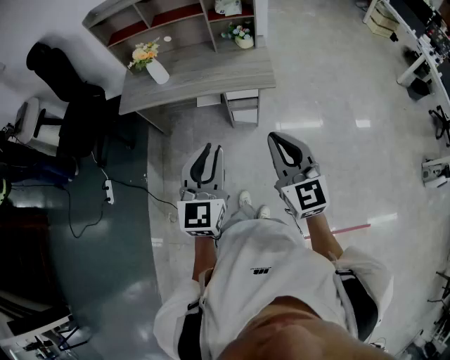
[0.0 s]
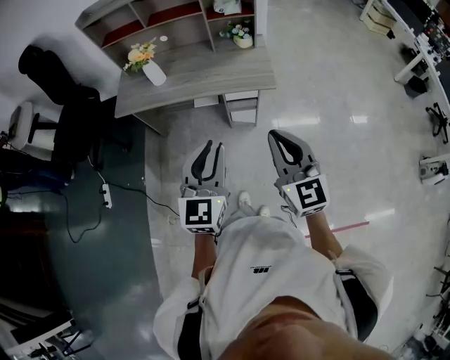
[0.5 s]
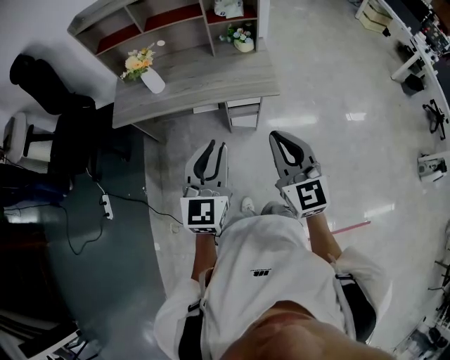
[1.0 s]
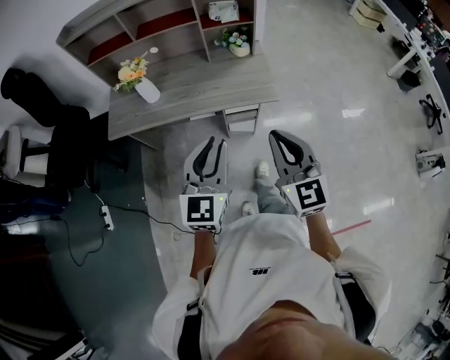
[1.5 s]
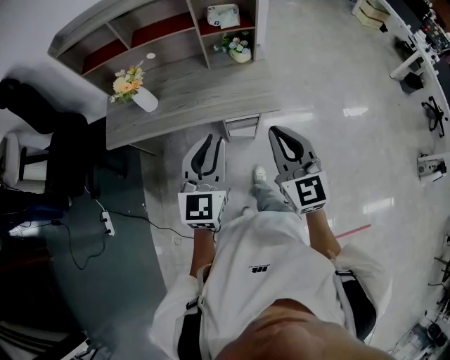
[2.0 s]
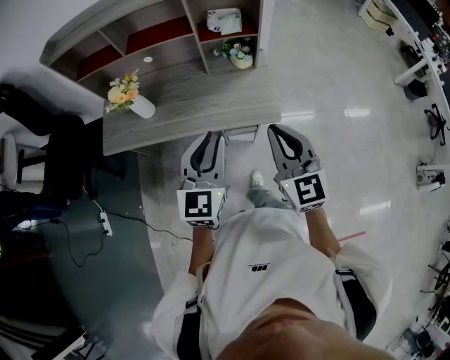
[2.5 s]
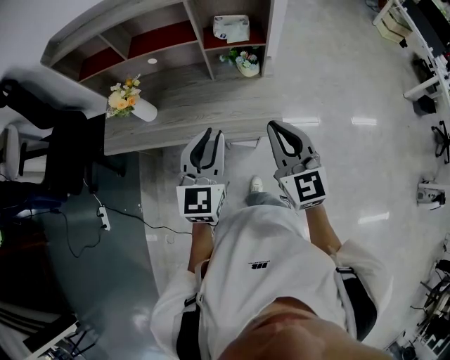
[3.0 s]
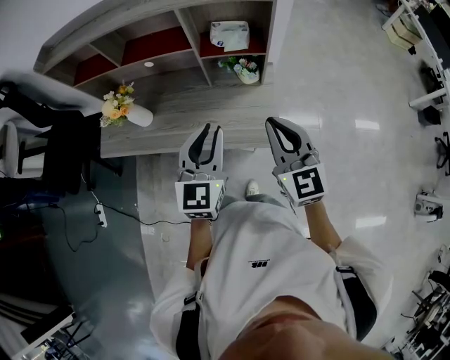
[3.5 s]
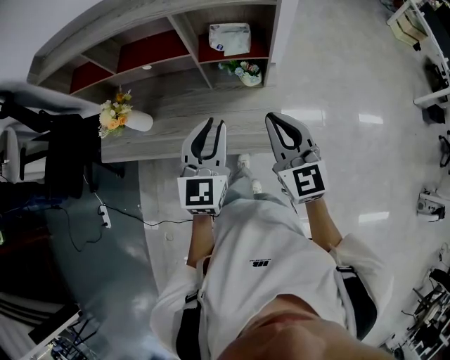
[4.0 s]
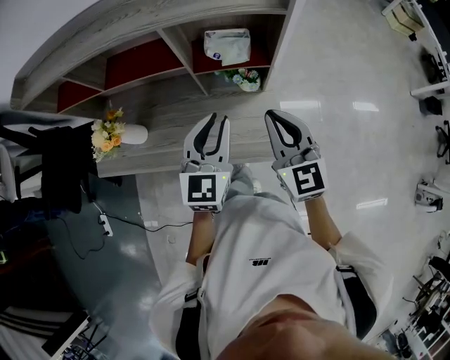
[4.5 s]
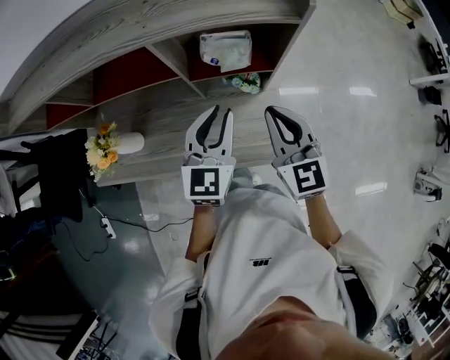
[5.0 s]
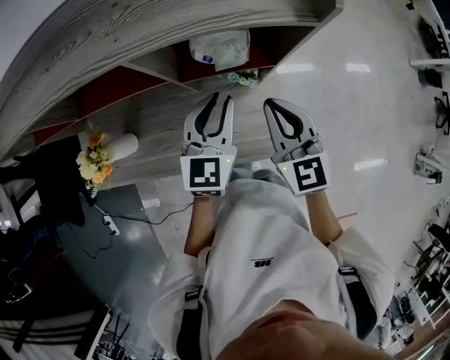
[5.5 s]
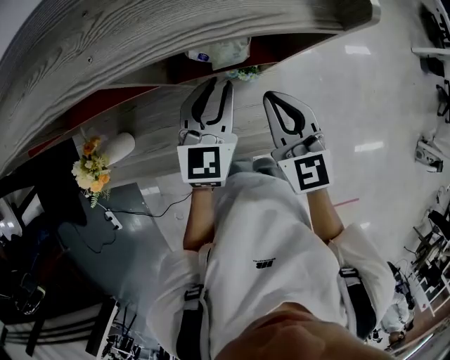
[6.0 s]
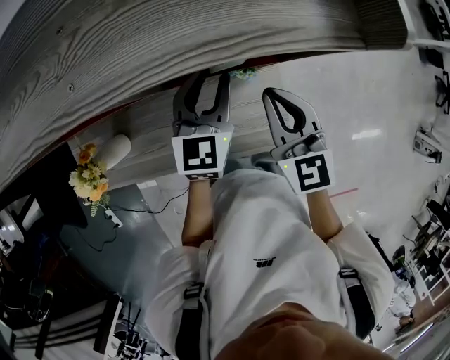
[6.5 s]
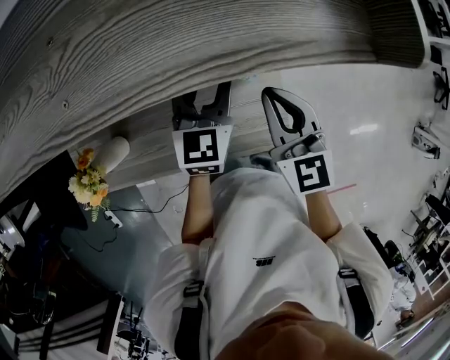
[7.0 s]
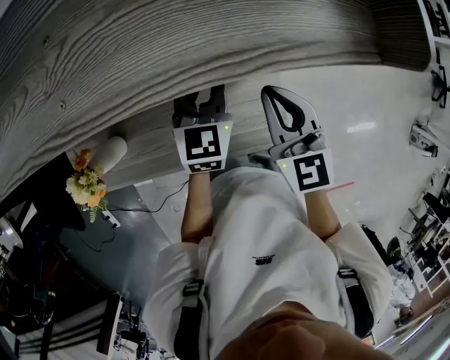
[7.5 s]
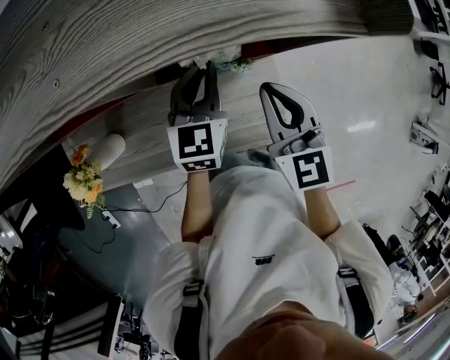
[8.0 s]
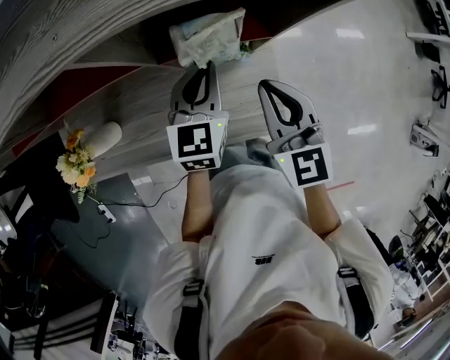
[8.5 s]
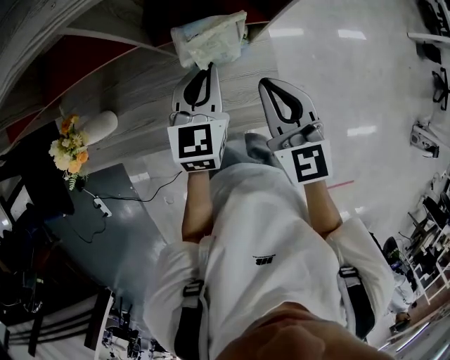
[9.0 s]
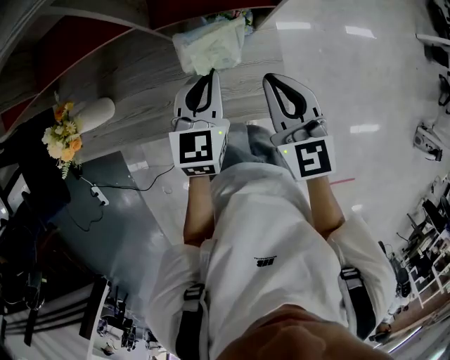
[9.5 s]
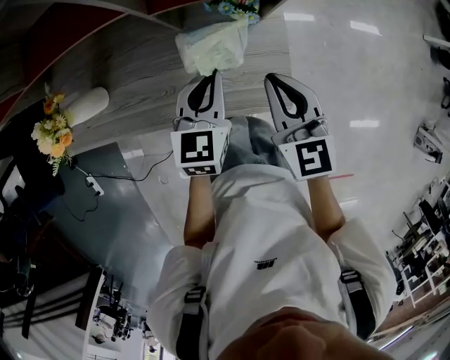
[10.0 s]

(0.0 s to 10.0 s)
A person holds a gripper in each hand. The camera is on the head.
0.0 s - 2.0 s: Both grippers travel together forward, approximately 25 cm.
2.0 s - 4.0 s: Both grippers move forward, about 25 cm.
4.0 s - 6.0 s: The two grippers go roughly 20 cm forward and downward.
6.0 s - 8.0 s: The left gripper ends up about 5 cm from where it was.
8.0 s - 10.0 s: The two grippers go about 15 cm backward and downward.

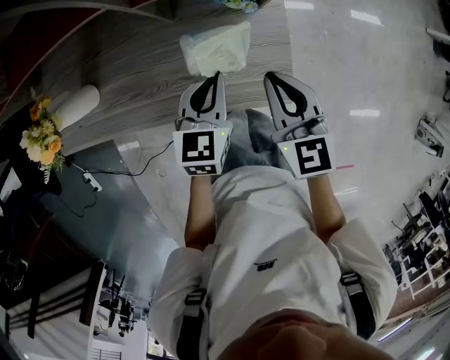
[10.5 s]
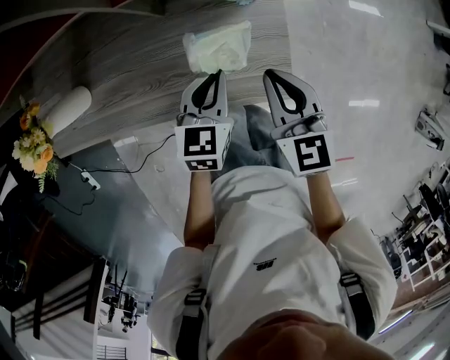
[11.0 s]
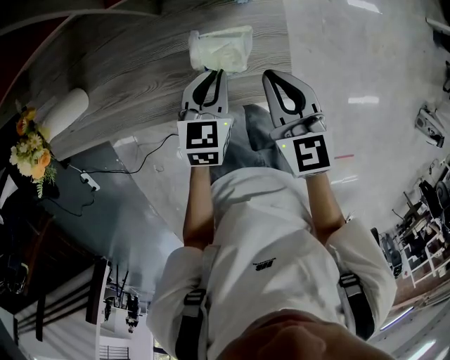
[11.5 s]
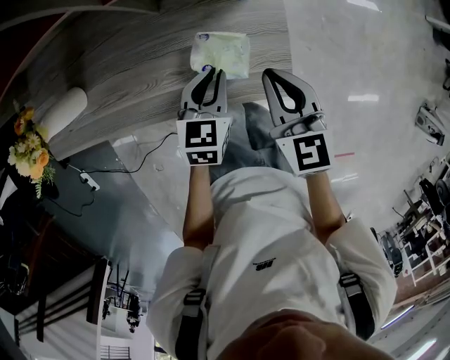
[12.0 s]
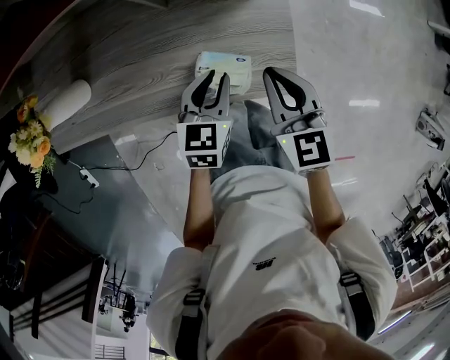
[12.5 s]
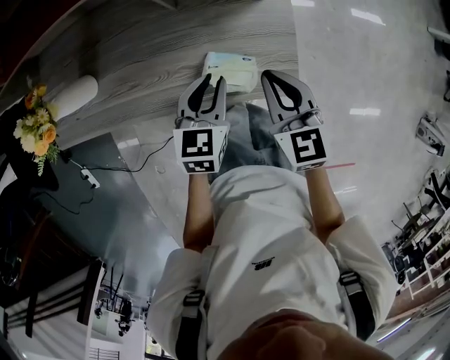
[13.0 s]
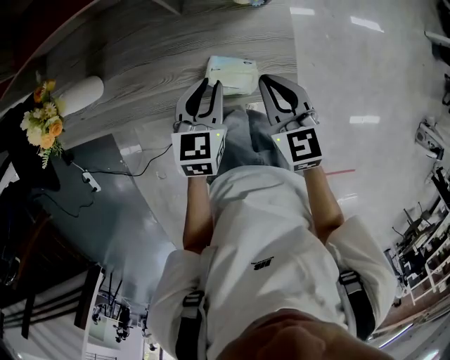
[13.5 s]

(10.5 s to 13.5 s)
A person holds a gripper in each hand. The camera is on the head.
10.5 s - 12.0 s: The left gripper goes about 5 cm downward.
12.0 s - 13.5 s: The left gripper travels to the left and upward by approximately 10 cm.

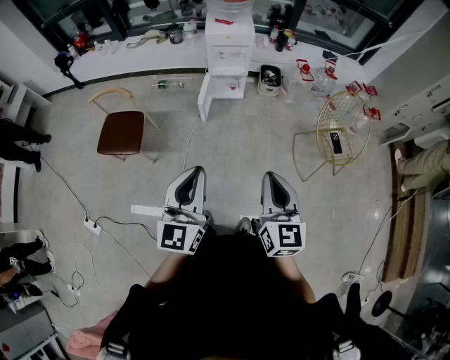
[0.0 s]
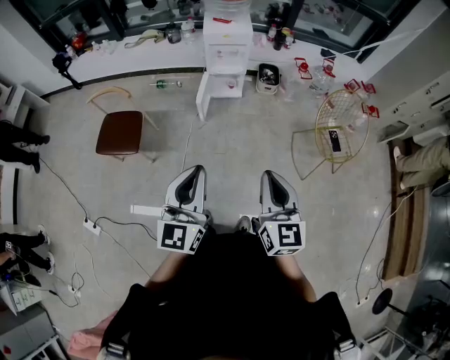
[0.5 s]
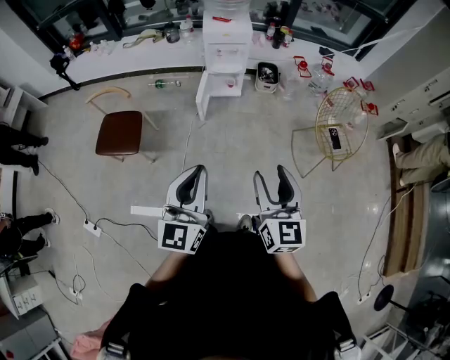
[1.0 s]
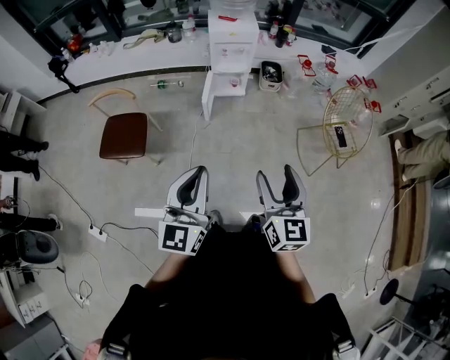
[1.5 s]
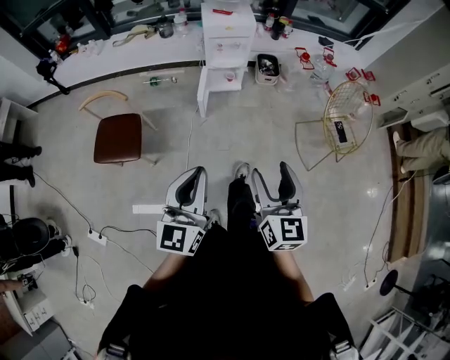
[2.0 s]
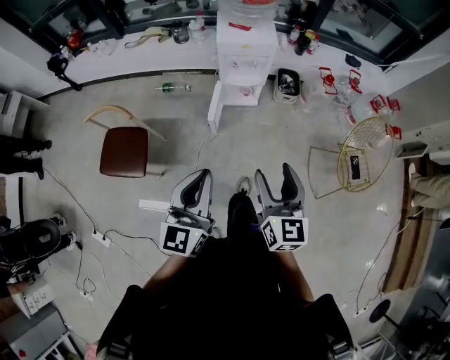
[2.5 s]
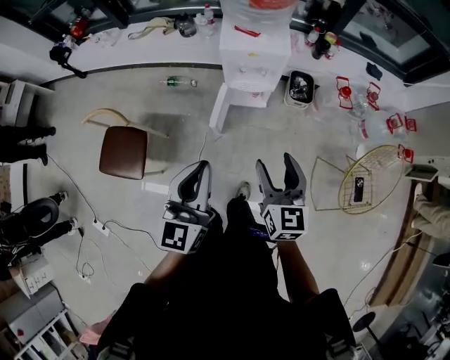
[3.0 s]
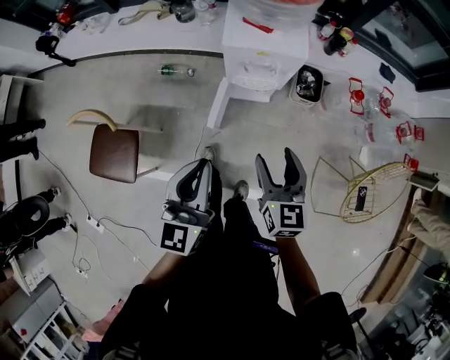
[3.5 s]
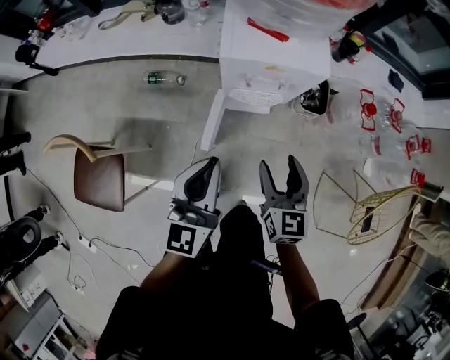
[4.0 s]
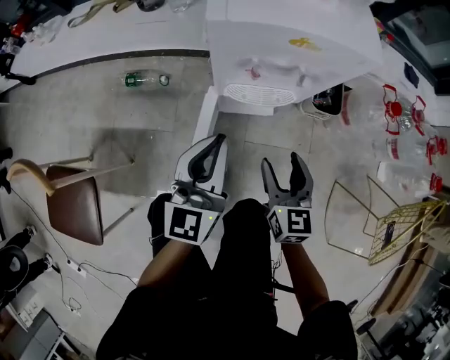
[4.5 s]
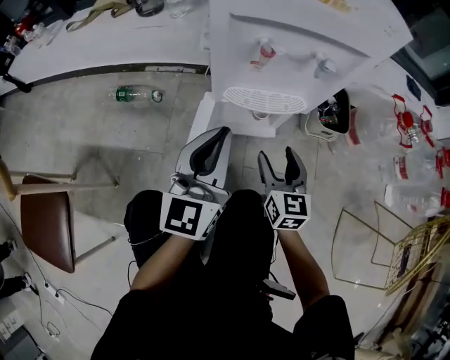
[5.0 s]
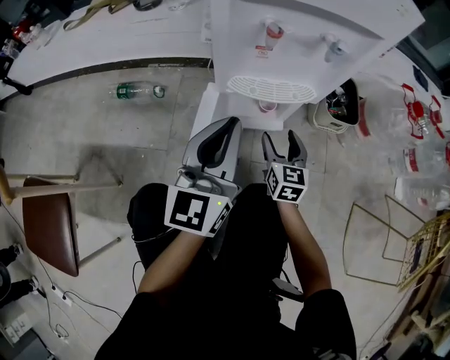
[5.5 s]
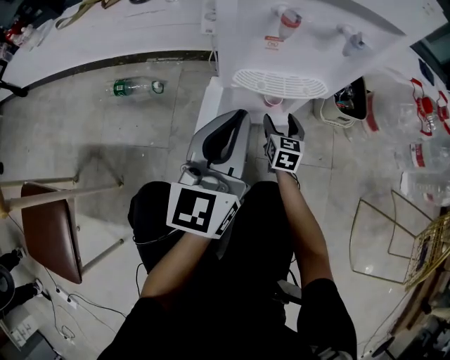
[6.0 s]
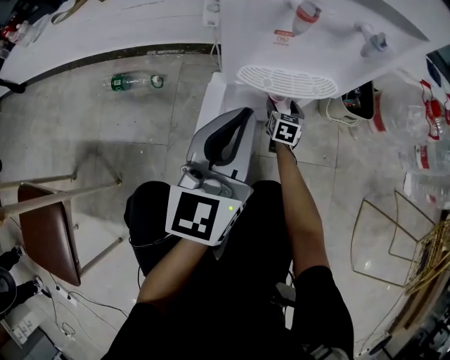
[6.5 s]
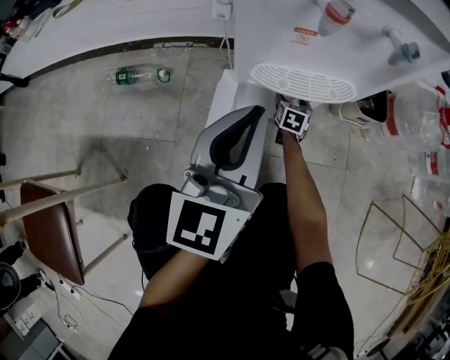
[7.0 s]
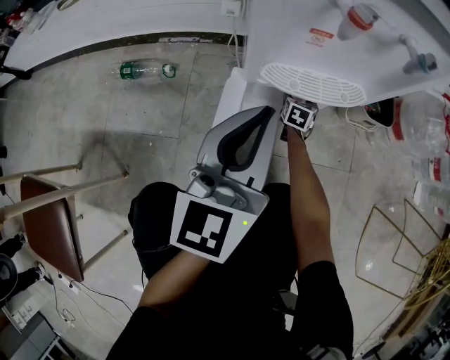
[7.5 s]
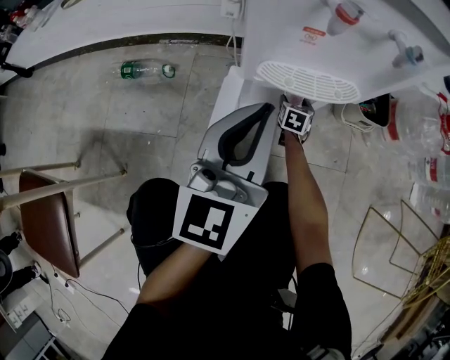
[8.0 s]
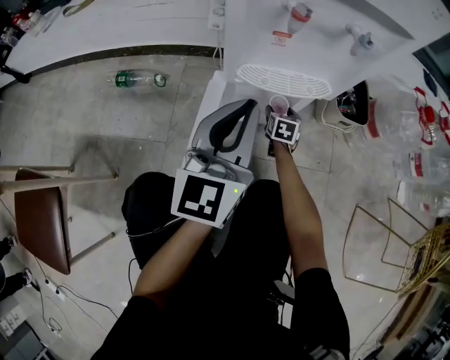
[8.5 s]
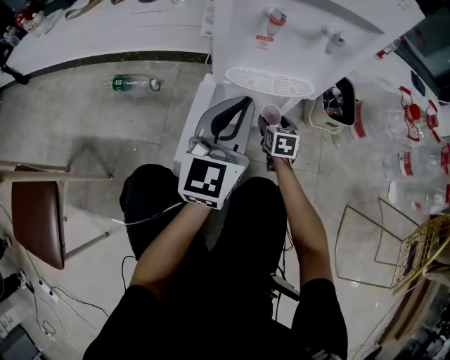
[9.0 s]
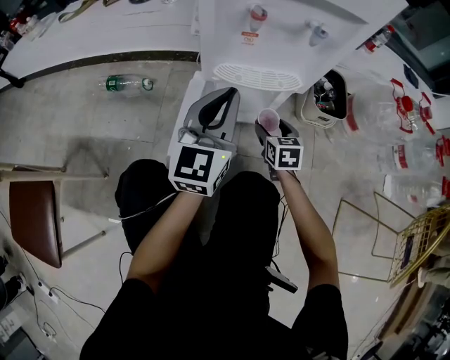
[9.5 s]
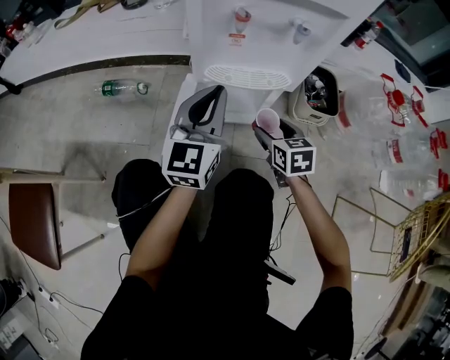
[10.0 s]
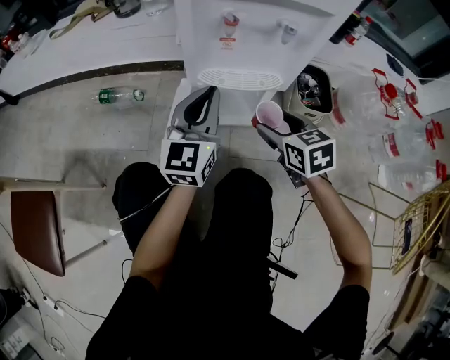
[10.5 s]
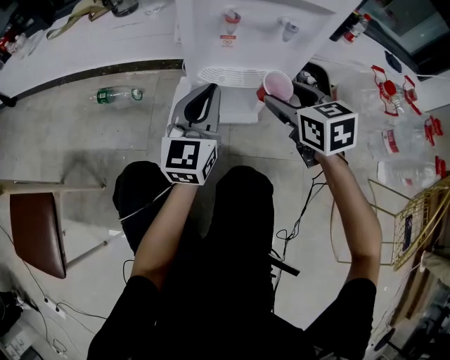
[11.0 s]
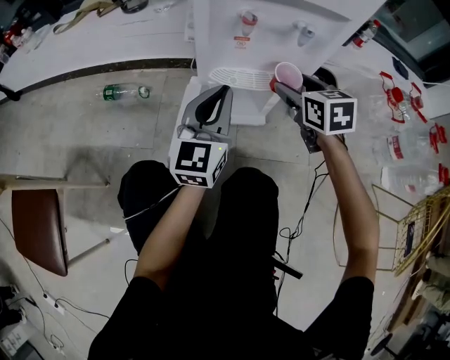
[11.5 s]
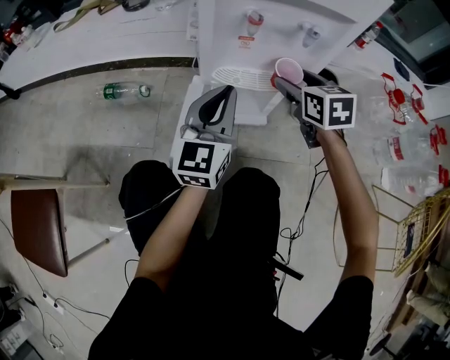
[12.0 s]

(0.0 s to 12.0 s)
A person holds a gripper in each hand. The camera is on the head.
0.0 s - 2.0 s: Both grippers travel together to the left and forward, roughly 10 cm. The right gripper opens up.
2.0 s - 4.0 s: The pair of grippers is taken forward, roughly 60 cm. The grippers both shift downward by about 30 cm.
4.0 s - 6.0 s: The right gripper shifts approximately 60 cm downward, while the left gripper goes roughly 35 cm downward.
6.0 s - 8.0 s: The right gripper goes some 15 cm downward and forward.
8.0 s - 10.0 s: The right gripper travels upward and backward by about 30 cm, and turns by about 30 degrees.
10.0 s - 12.0 s: The right gripper travels upward and forward by approximately 15 cm.

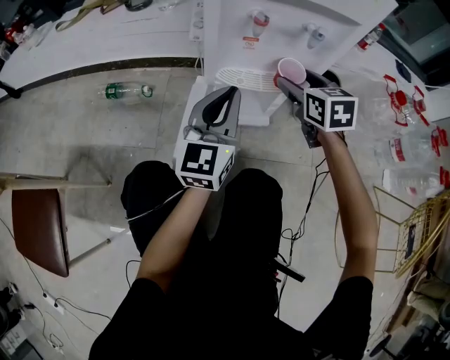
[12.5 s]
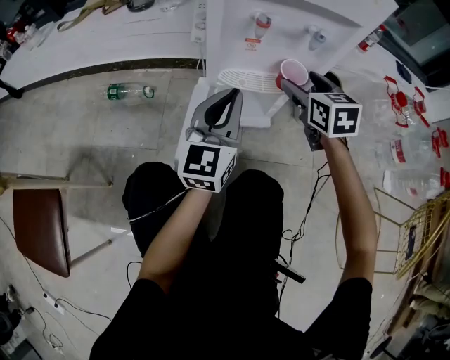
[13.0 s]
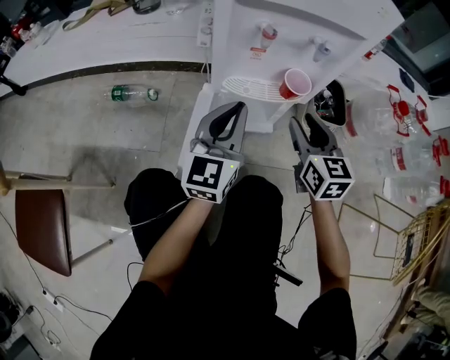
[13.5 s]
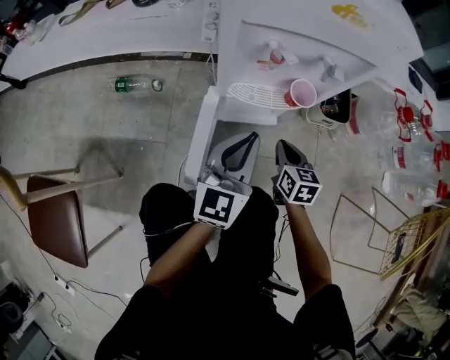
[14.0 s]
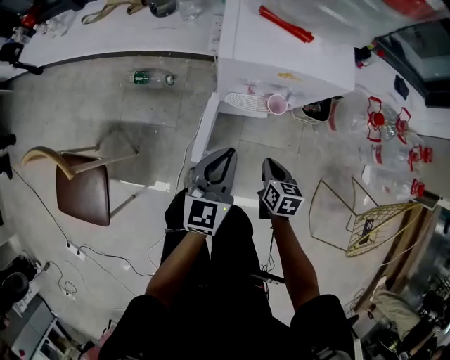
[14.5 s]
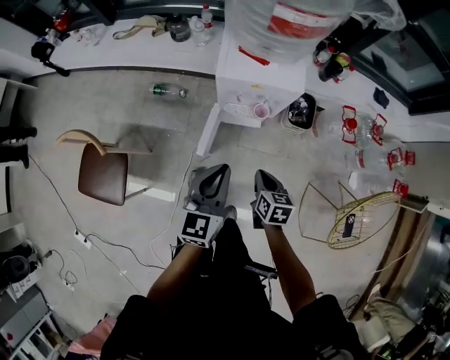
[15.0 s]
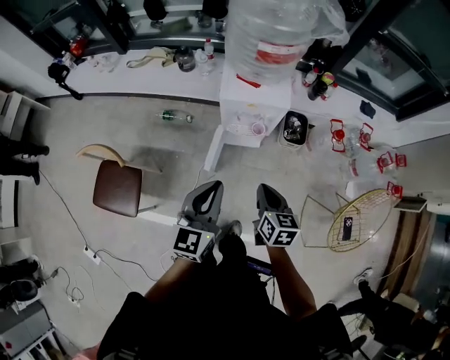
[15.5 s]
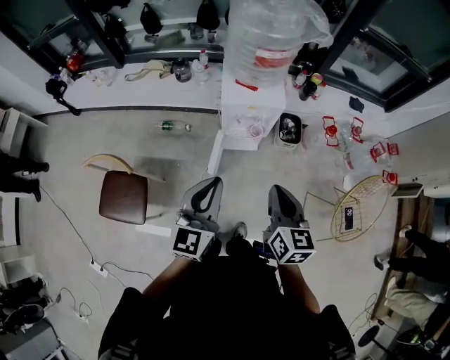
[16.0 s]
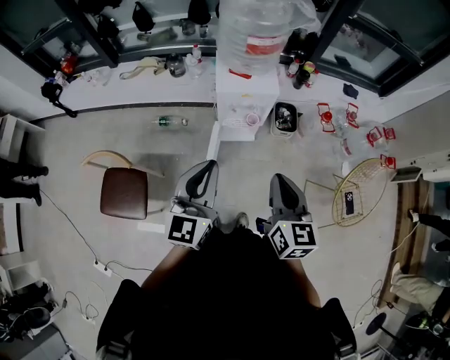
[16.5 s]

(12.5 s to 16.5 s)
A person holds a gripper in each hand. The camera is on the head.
12.5 s - 14.5 s: The left gripper is displaced upward by about 20 cm, and turns by about 20 degrees, while the right gripper moves backward, approximately 20 cm, changes its angle by roughly 30 degrees, and closes.
14.5 s - 16.5 s: The right gripper heads upward, covering about 60 cm, and tilts its fingers about 30 degrees upward; the left gripper moves upward and backward, about 50 cm.
